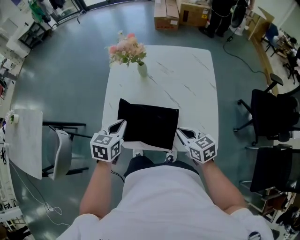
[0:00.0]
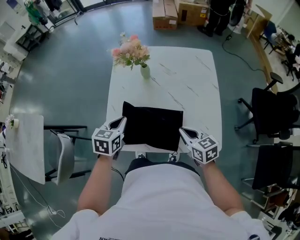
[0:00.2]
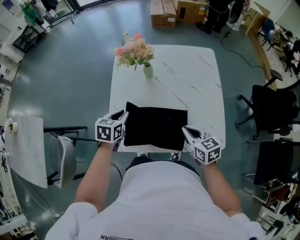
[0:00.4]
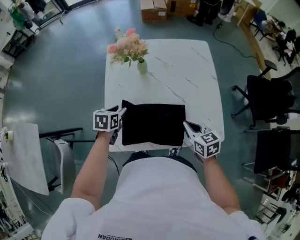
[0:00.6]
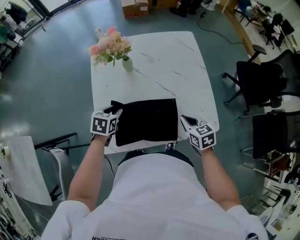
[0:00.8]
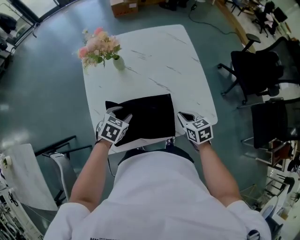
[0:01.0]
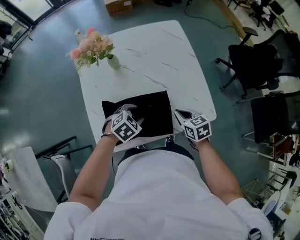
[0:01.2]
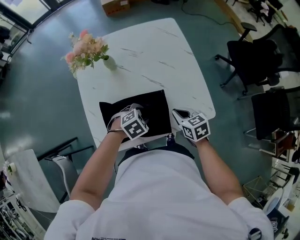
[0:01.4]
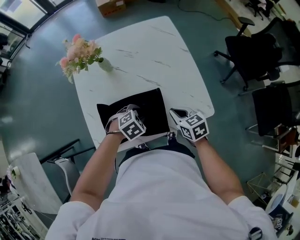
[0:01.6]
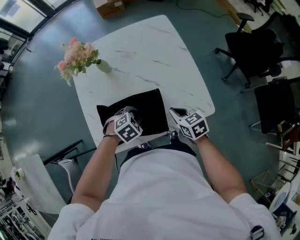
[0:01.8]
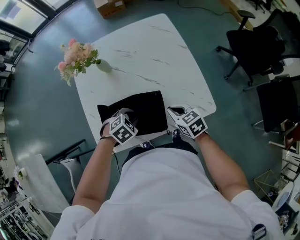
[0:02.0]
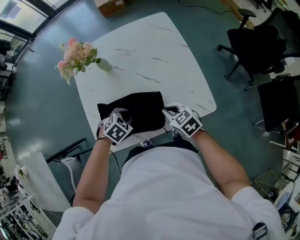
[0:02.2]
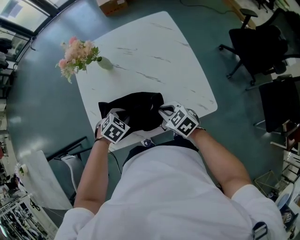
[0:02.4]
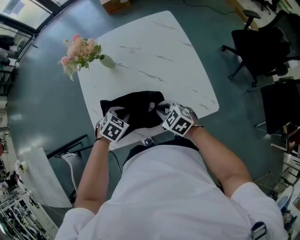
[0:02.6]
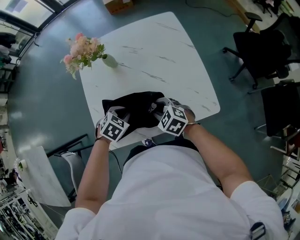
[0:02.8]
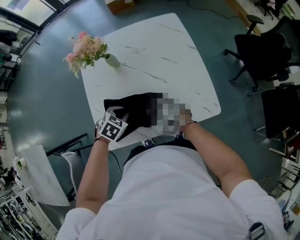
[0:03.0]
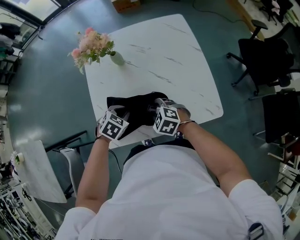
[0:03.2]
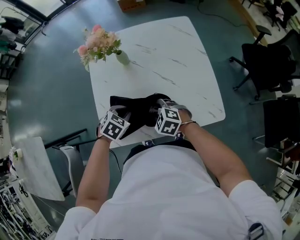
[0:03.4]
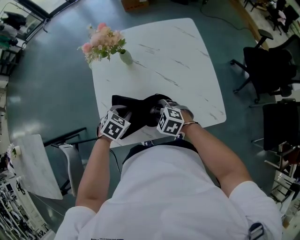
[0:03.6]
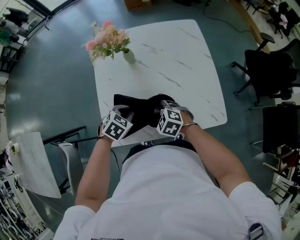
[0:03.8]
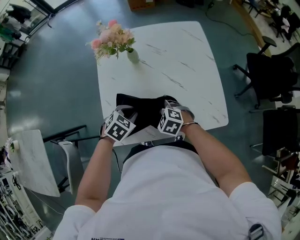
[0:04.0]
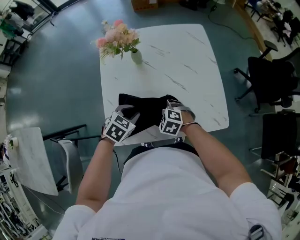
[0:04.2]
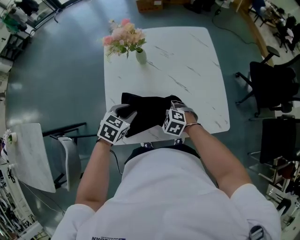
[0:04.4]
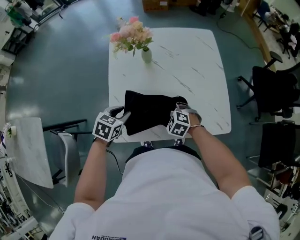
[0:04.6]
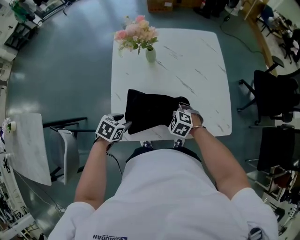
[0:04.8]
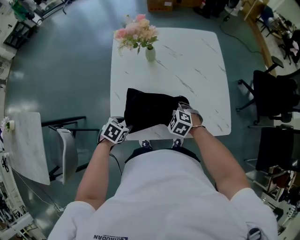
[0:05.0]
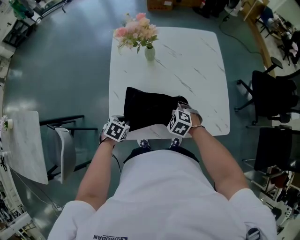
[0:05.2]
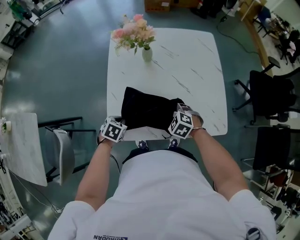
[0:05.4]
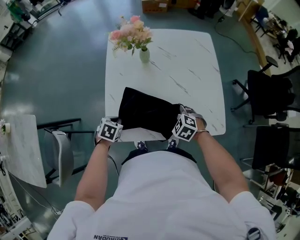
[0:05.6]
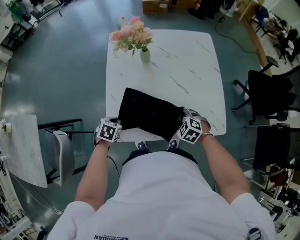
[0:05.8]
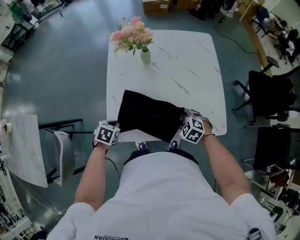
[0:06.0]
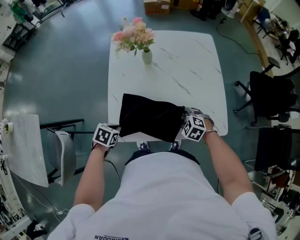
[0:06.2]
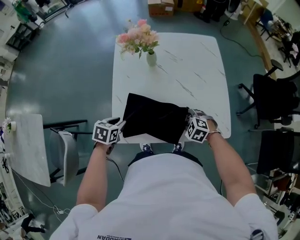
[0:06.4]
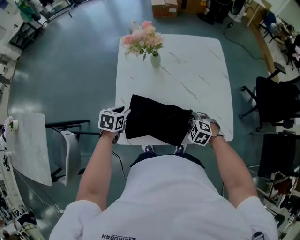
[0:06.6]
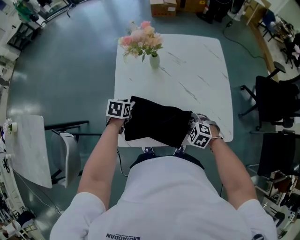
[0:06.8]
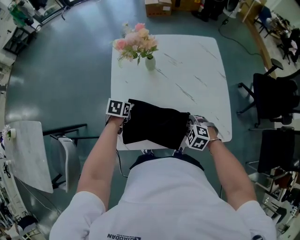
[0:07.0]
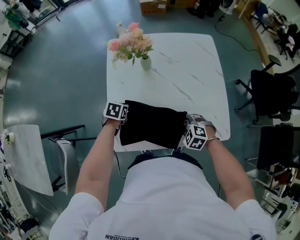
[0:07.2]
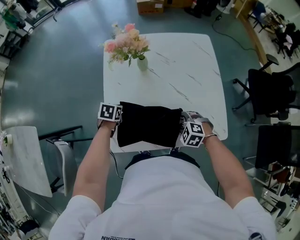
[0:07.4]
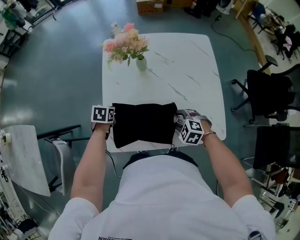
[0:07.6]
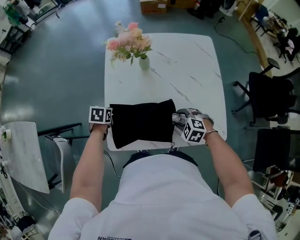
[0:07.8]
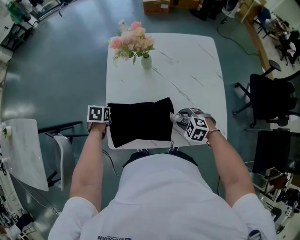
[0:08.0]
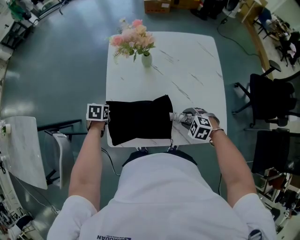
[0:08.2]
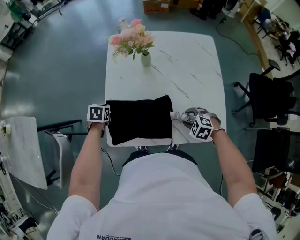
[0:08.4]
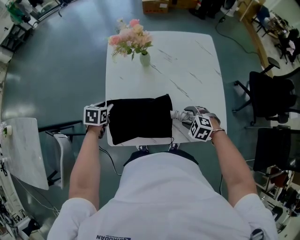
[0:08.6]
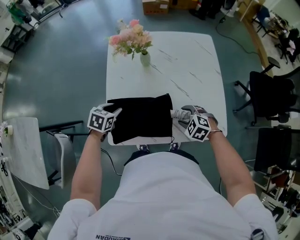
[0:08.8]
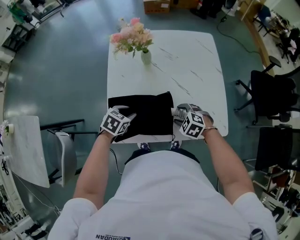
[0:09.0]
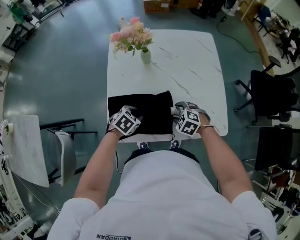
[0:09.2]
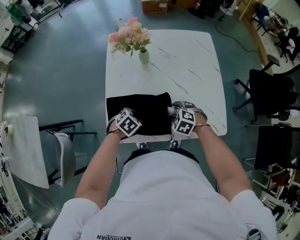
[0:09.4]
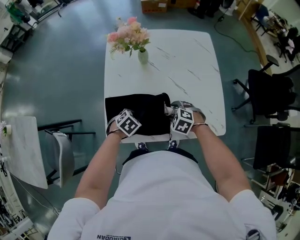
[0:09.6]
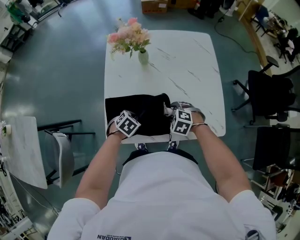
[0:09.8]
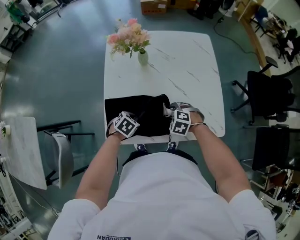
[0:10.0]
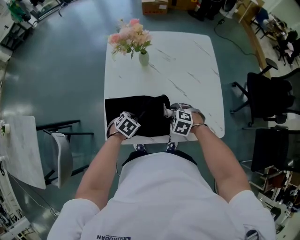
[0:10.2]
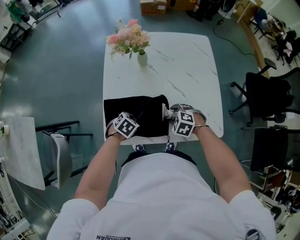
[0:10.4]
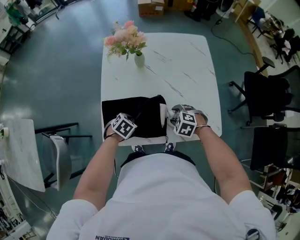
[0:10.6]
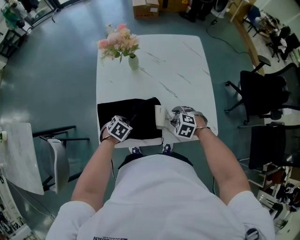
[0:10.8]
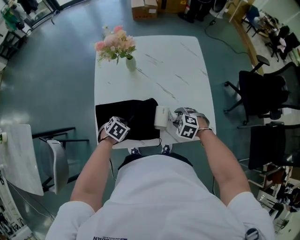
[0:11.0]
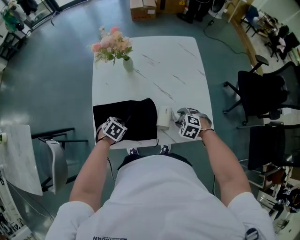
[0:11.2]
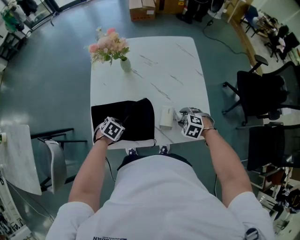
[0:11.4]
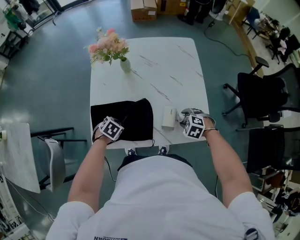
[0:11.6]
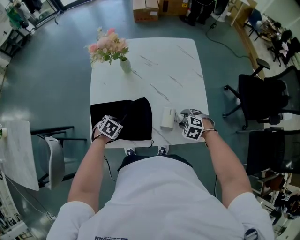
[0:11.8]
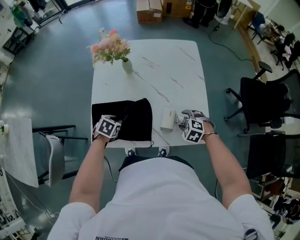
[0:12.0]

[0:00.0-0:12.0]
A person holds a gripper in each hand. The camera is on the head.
0:00.0 to 0:01.6: The left gripper goes roughly 15 cm downward, tilts its fingers roughly 30 degrees downward, and opens its fingers. The right gripper is displaced downward by some 5 cm, and changes its angle by about 20 degrees.
0:01.6 to 0:03.0: The grippers both shift to the left by approximately 10 cm. The right gripper twists roughly 40 degrees counterclockwise, seen from behind, and opens. Meanwhile the left gripper rotates approximately 20 degrees.
0:03.0 to 0:04.4: The left gripper shifts some 5 cm to the left, and changes its angle by about 20 degrees, while the right gripper moves approximately 5 cm, and opens.
0:04.4 to 0:06.0: The left gripper goes about 15 cm to the left, downward and backward, swivels approximately 20 degrees, and closes. Meanwhile the right gripper is displaced to the right by approximately 10 cm.
0:06.0 to 0:07.6: The left gripper heads forward, covering about 15 cm, and opens, then closes once more.
0:07.6 to 0:09.0: The left gripper travels backward and to the right by approximately 10 cm, rotates some 30 degrees, and opens up.
0:09.0 to 0:10.4: The left gripper is displaced downward by about 5 cm, and closes up.
0:10.4 to 0:12.0: The left gripper opens. Meanwhile the right gripper changes place by about 15 cm.

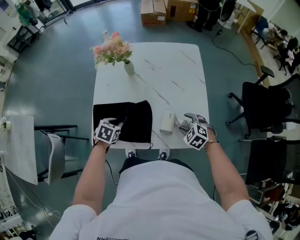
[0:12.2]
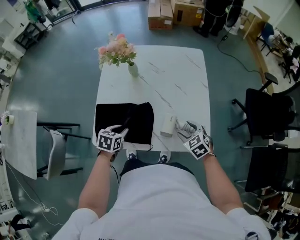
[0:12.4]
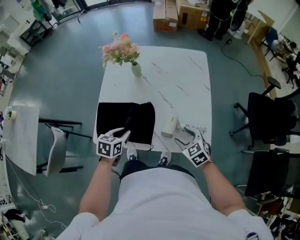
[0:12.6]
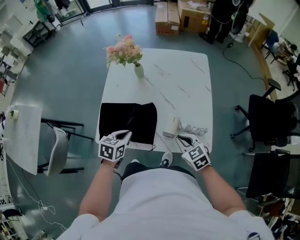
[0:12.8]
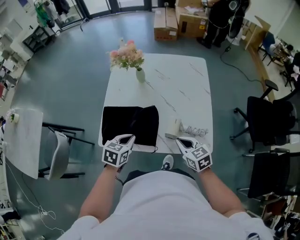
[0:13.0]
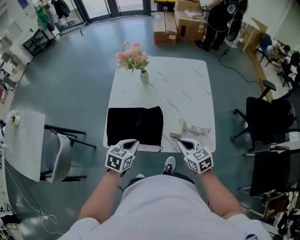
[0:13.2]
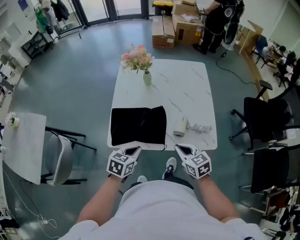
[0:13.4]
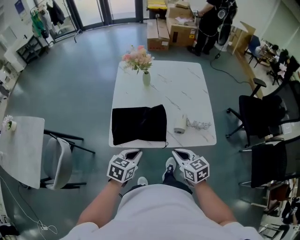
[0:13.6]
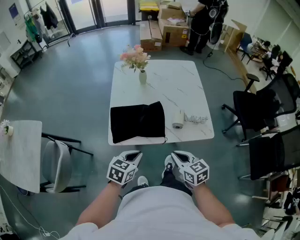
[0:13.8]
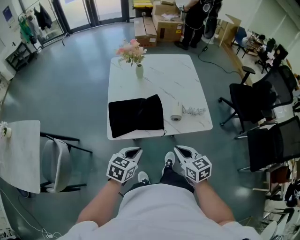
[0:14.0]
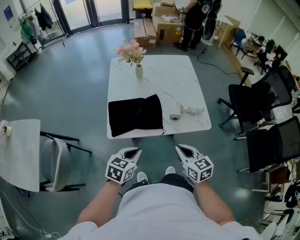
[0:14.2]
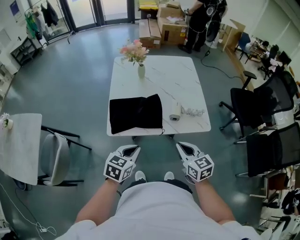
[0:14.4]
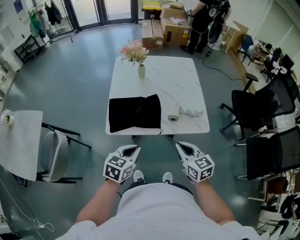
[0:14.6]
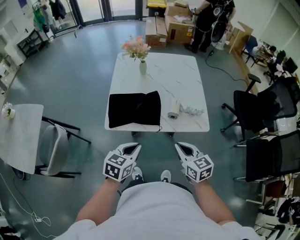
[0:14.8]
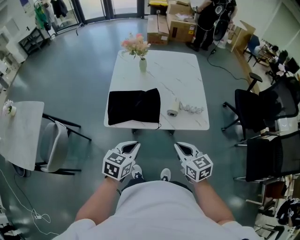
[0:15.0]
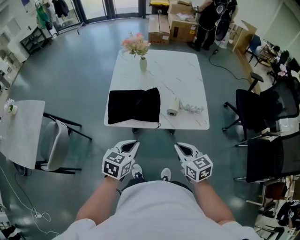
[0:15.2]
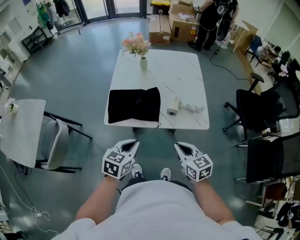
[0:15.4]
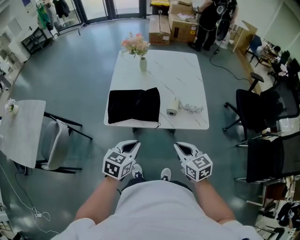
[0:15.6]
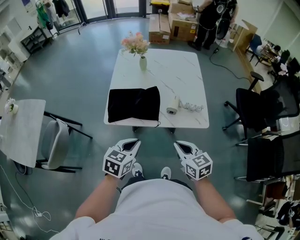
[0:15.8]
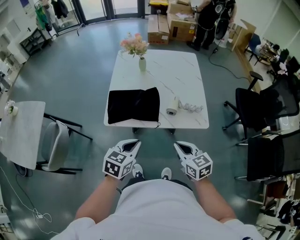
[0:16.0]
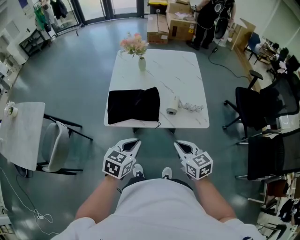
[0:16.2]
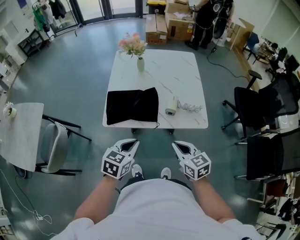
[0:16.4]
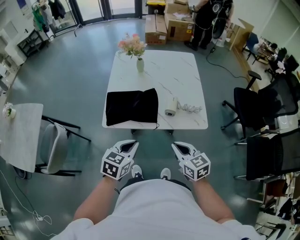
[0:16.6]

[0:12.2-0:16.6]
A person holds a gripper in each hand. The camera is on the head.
0:12.2 to 0:13.6: The right gripper heads backward, to the left and upward, covering about 25 cm, twists approximately 40 degrees clockwise, seen from behind, and closes, while the left gripper is displaced backward and upward by about 20 cm, rotates about 20 degrees, and closes up.
0:13.6 to 0:15.2: The left gripper moves backward, approximately 10 cm. Meanwhile the right gripper moves backward and to the right, about 10 cm.
0:15.2 to 0:16.6: Neither gripper changes place.

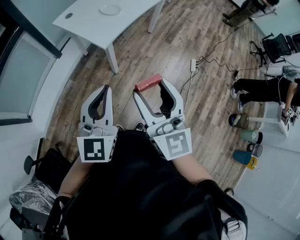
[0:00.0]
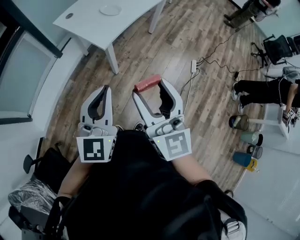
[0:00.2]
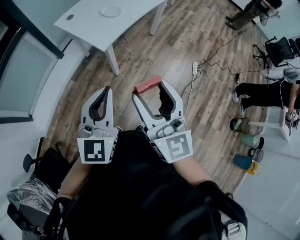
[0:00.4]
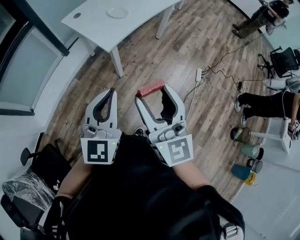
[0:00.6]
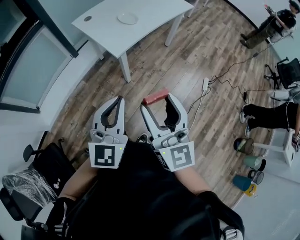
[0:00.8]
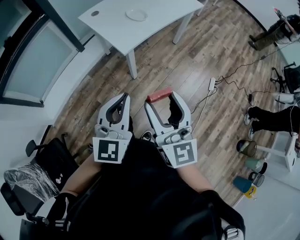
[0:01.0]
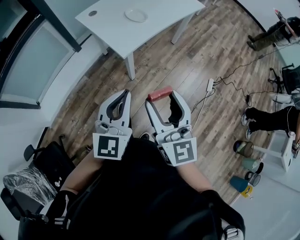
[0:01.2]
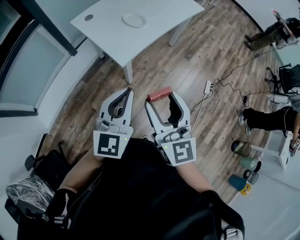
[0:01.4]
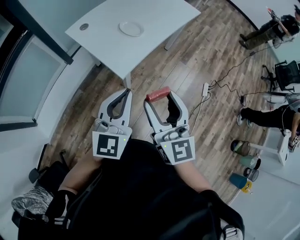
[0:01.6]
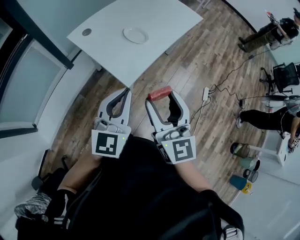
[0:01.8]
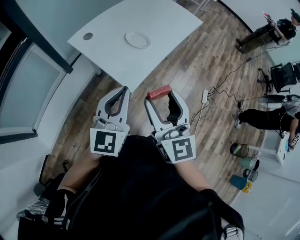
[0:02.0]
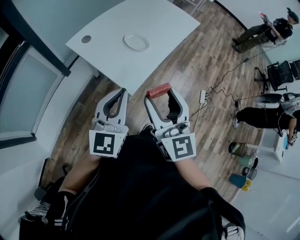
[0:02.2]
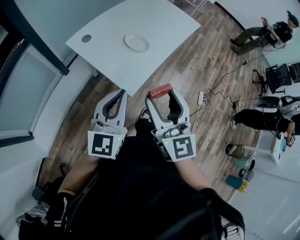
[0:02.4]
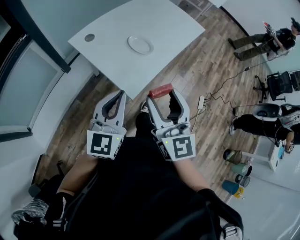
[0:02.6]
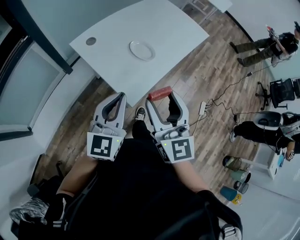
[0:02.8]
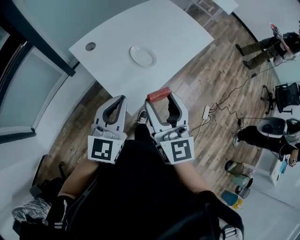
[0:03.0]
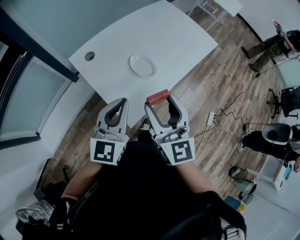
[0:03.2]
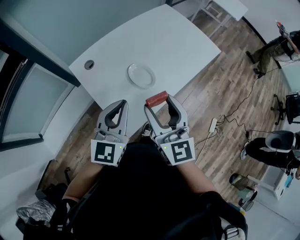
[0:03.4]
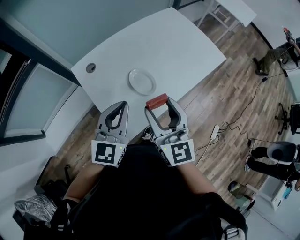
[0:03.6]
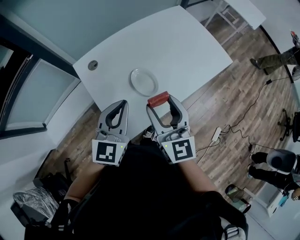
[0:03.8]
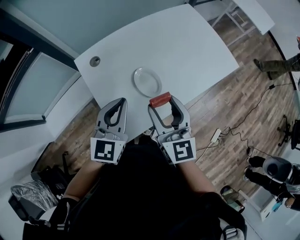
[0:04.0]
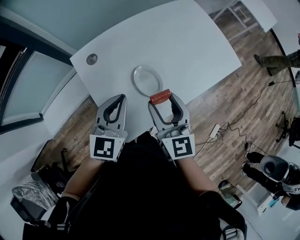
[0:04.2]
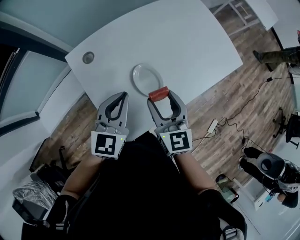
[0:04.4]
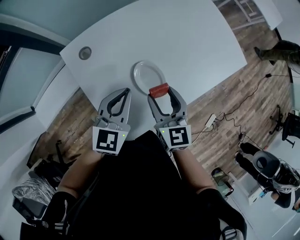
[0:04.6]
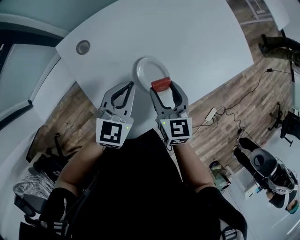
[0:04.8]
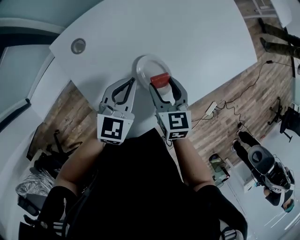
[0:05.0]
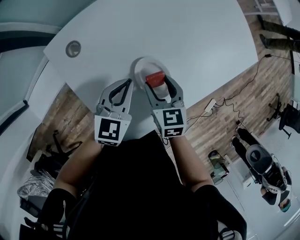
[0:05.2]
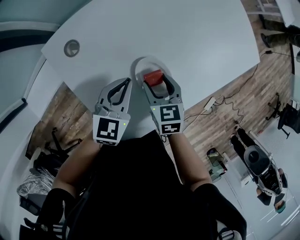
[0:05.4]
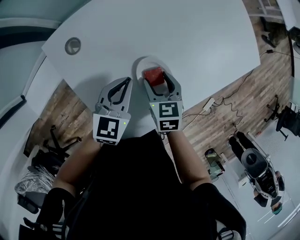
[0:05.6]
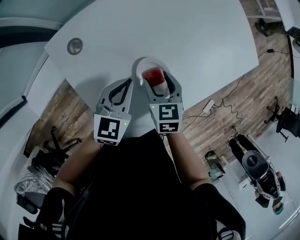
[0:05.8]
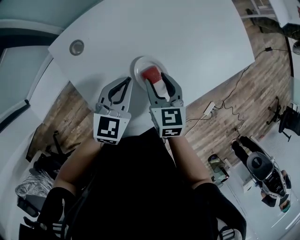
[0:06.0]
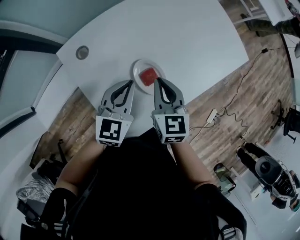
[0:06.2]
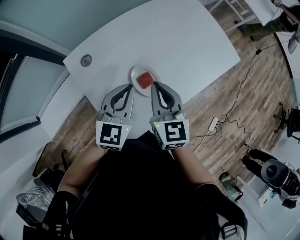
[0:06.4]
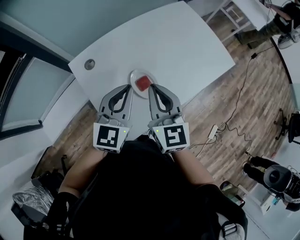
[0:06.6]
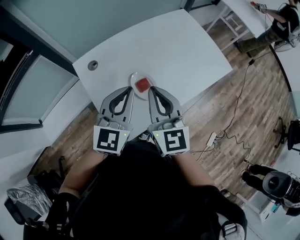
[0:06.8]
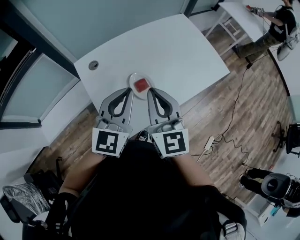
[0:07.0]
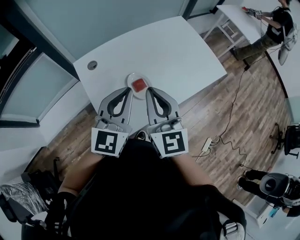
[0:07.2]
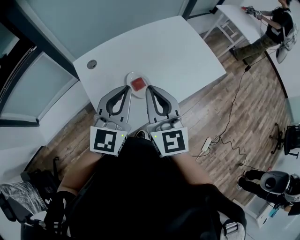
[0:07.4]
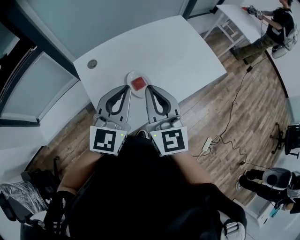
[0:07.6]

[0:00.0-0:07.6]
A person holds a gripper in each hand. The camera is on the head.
0:00.0 to 0:01.6: The grippers both shift forward by approximately 20 cm.
0:01.6 to 0:03.0: The left gripper is displaced forward and to the left by roughly 20 cm, while the right gripper moves forward, roughly 20 cm.
0:03.0 to 0:04.6: Both grippers travel together forward and downward, about 25 cm. The right gripper rotates about 30 degrees.
0:04.6 to 0:06.0: Both grippers move downward, some 5 cm.
0:06.0 to 0:07.6: The grippers both shift upward and backward by roughly 25 cm. The left gripper swivels roughly 30 degrees. The right gripper tilts its fingers some 40 degrees upward, and closes.
